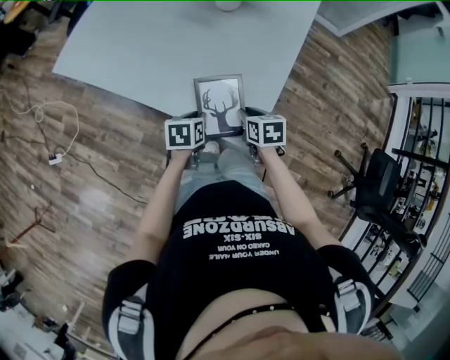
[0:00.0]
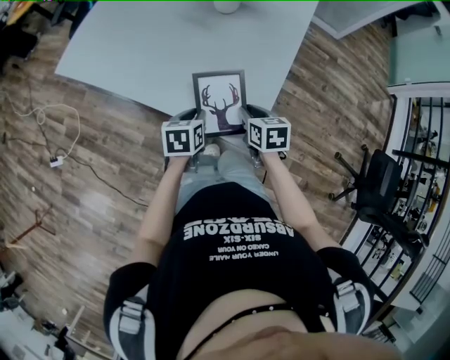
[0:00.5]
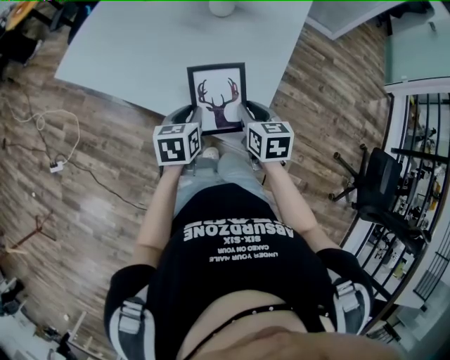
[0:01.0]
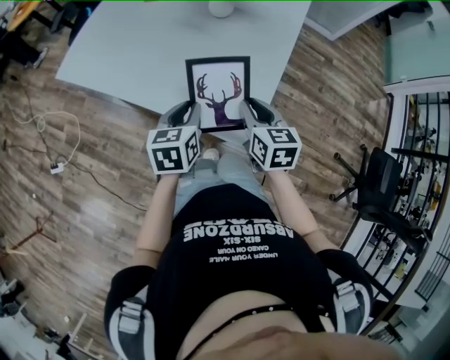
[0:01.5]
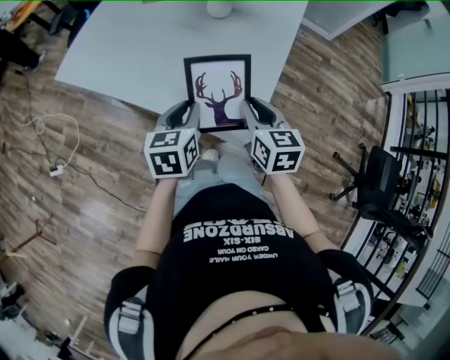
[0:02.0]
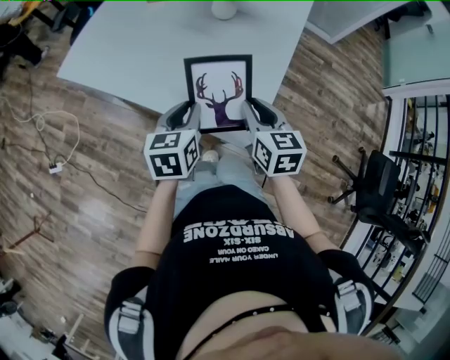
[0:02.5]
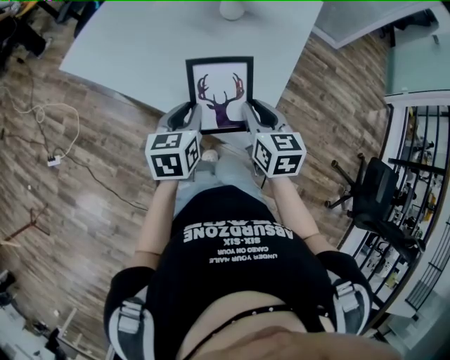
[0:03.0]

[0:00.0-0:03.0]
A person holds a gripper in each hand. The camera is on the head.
0:00.0 to 0:01.5: The grippers both shift upward by about 15 cm. The left gripper turns by some 20 degrees; the right gripper turns by approximately 20 degrees.
0:01.5 to 0:03.0: The grippers make only small movements.

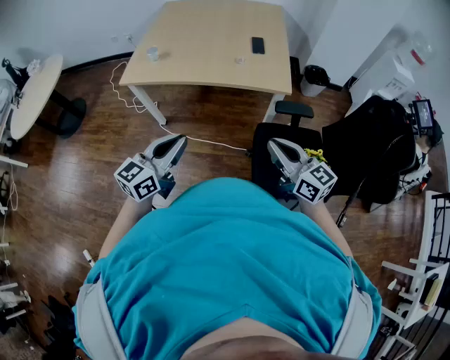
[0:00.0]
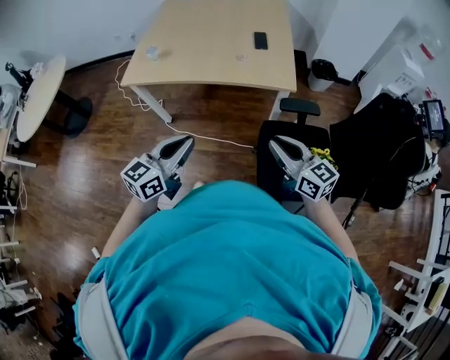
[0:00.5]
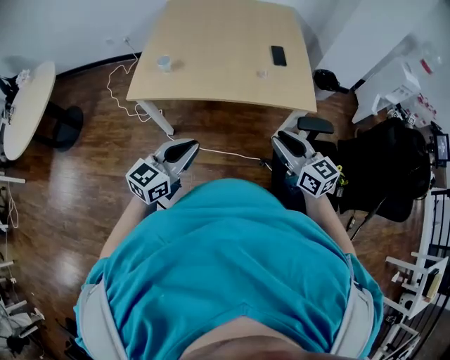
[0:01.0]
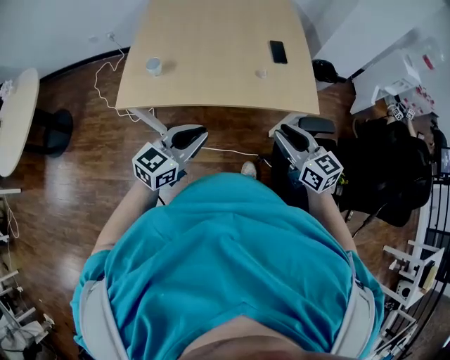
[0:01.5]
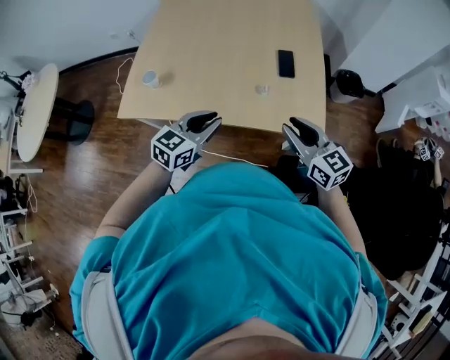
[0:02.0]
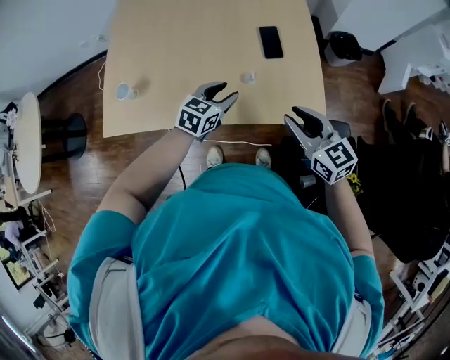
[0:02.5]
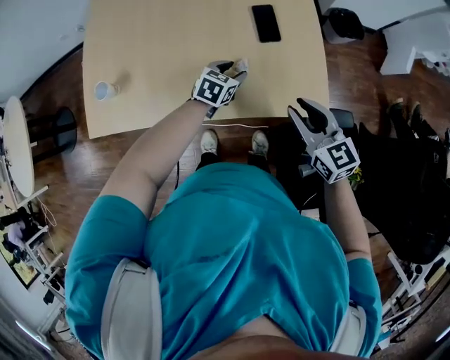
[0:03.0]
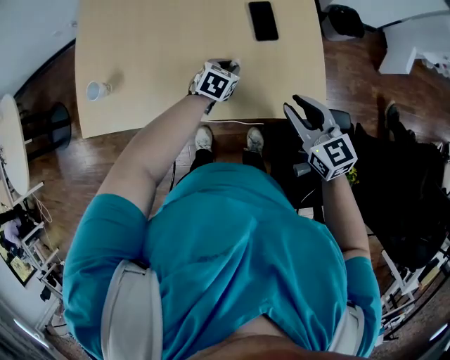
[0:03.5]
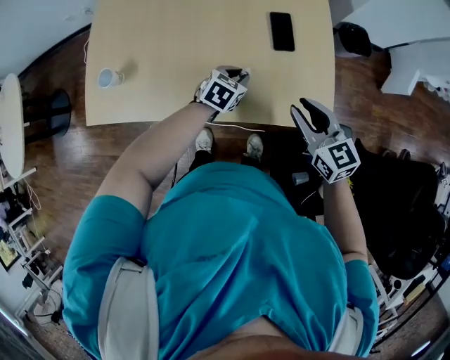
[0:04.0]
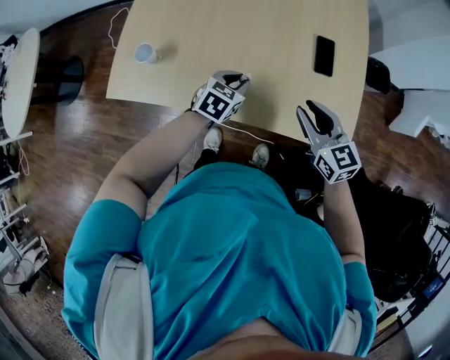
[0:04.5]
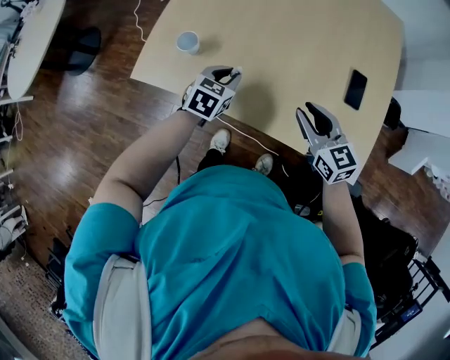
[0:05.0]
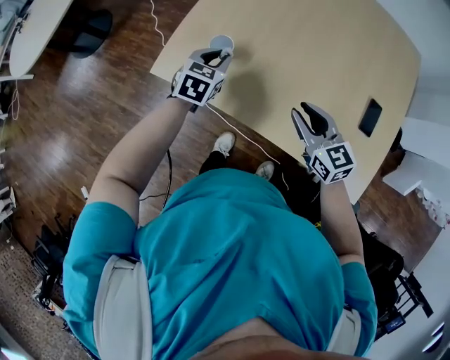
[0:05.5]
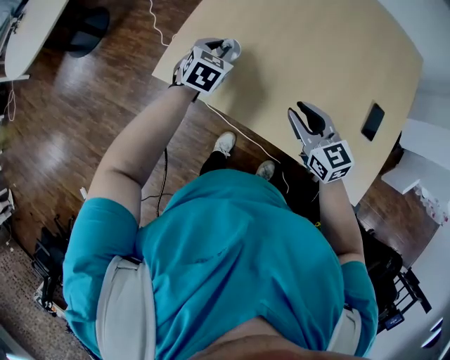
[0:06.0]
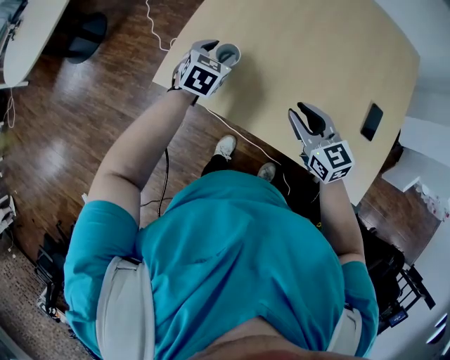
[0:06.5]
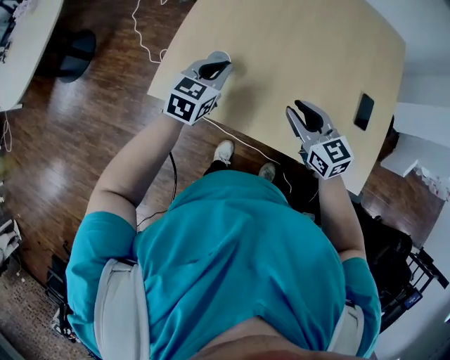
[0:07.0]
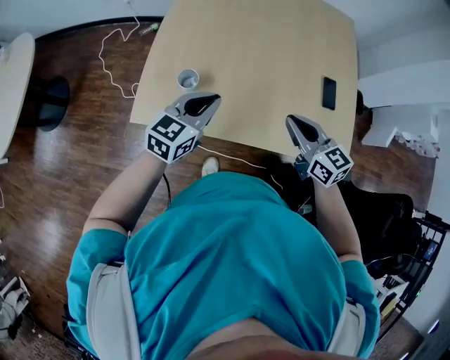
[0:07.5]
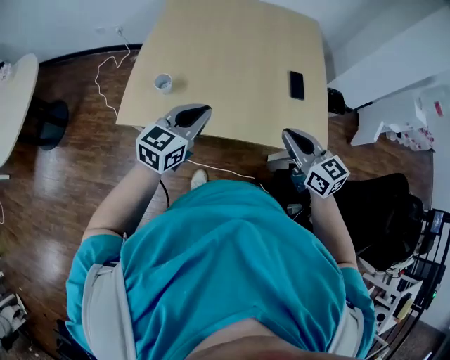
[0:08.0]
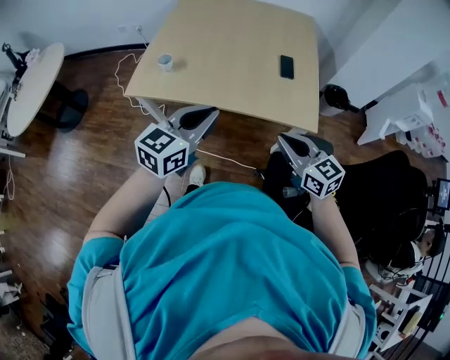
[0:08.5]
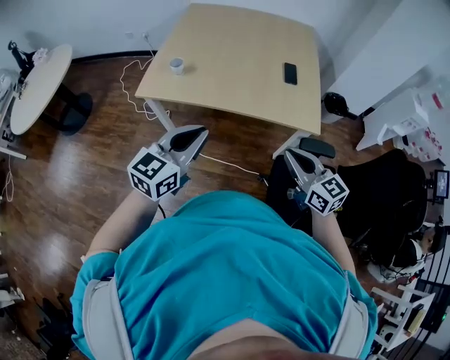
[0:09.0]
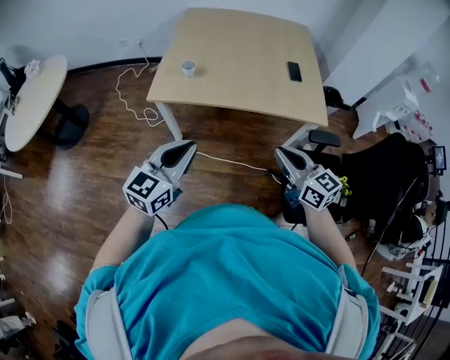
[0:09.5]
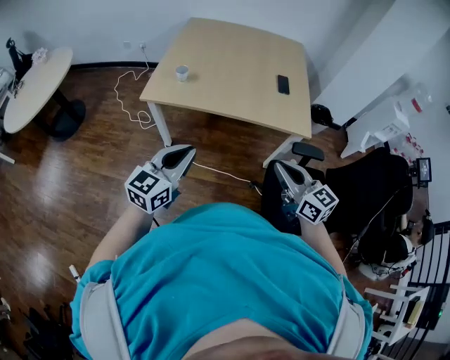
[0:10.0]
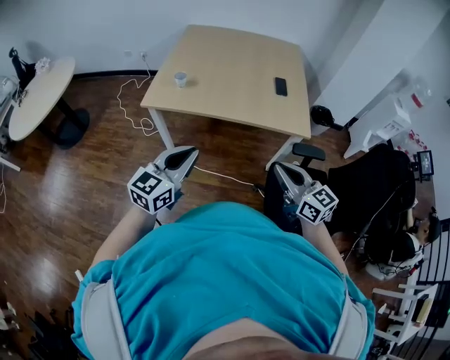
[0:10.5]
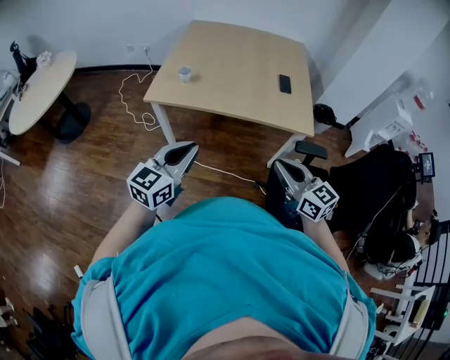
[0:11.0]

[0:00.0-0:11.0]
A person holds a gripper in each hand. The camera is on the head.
0:00.0 to 0:02.0: The grippers both shift forward by about 35 cm. The left gripper swivels about 20 degrees. The right gripper opens.
0:02.0 to 0:03.5: The left gripper travels downward and forward by about 35 cm, tilts its fingers about 30 degrees downward, and opens, then closes again; the right gripper shifts approximately 15 cm downward and forward.
0:03.5 to 0:05.5: The left gripper ends up about 50 cm from where it was, and turns by roughly 40 degrees, while the right gripper ends up approximately 35 cm from where it was, and turns by about 30 degrees.
0:05.5 to 0:07.5: The right gripper moves upward, some 10 cm, and closes; the left gripper shifts roughly 15 cm upward and backward, changes its angle by about 40 degrees, and opens, then closes again.
0:07.5 to 0:09.0: The right gripper travels backward and to the right by roughly 40 cm, while the left gripper moves backward, some 35 cm.
0:09.0 to 0:11.0: Both grippers move backward and to the left, roughly 10 cm.

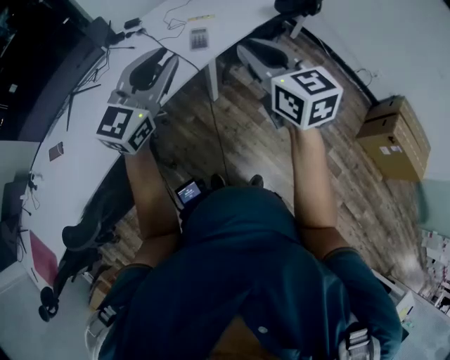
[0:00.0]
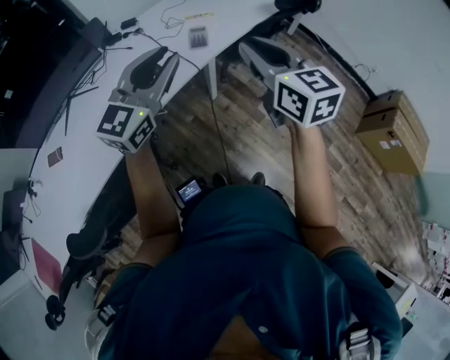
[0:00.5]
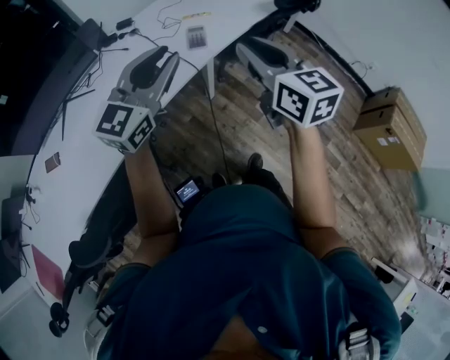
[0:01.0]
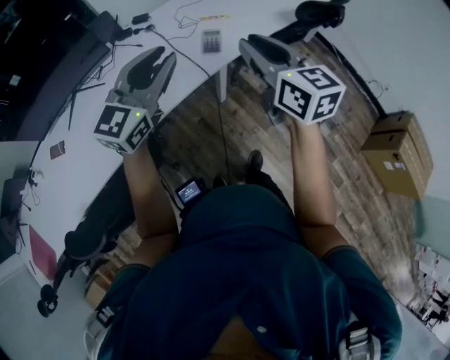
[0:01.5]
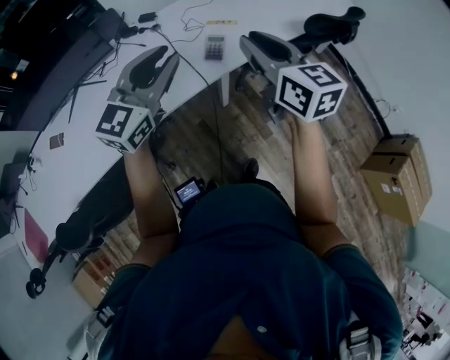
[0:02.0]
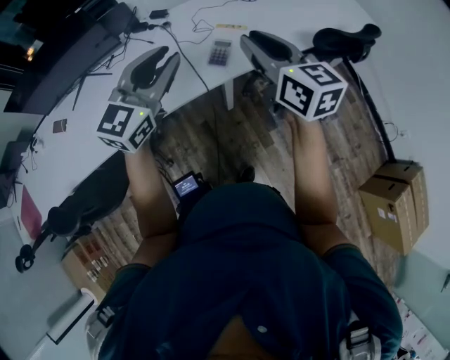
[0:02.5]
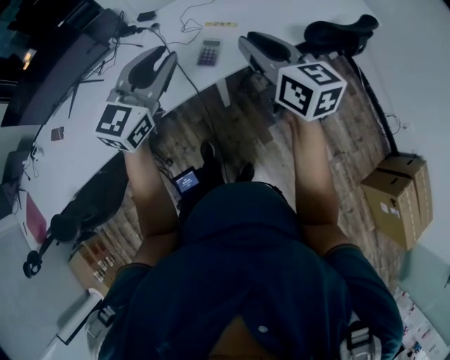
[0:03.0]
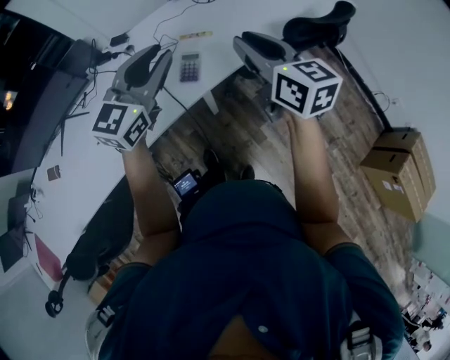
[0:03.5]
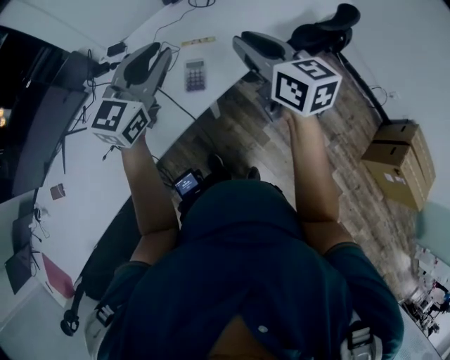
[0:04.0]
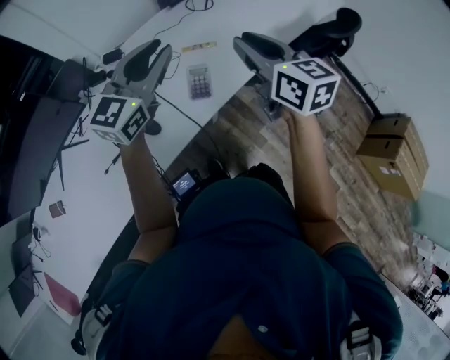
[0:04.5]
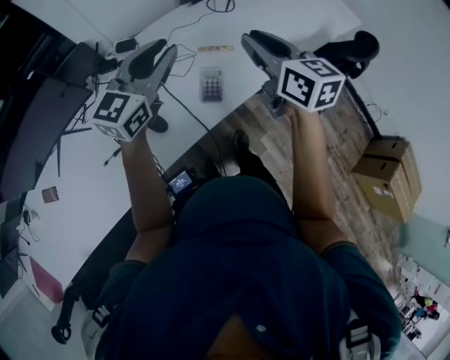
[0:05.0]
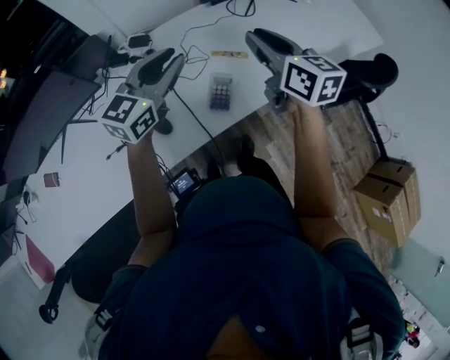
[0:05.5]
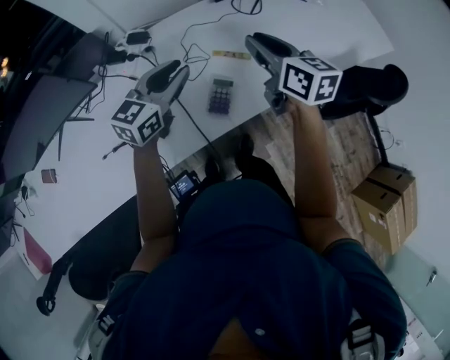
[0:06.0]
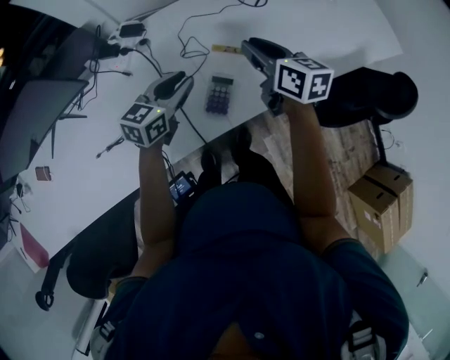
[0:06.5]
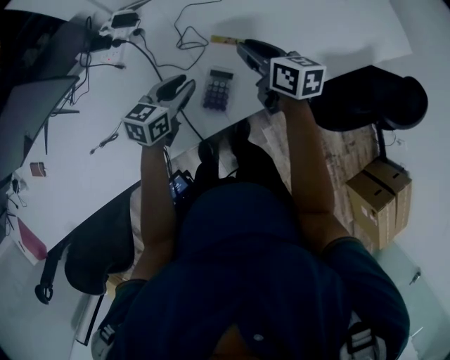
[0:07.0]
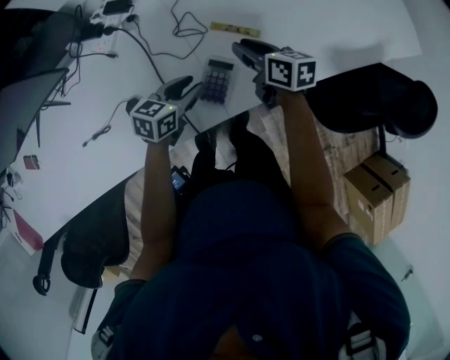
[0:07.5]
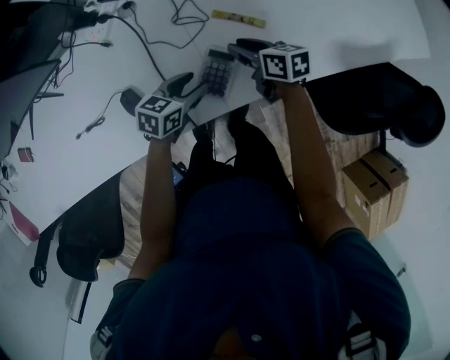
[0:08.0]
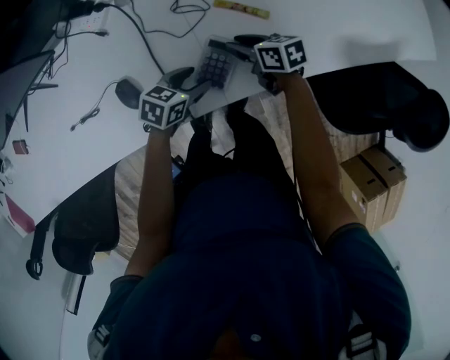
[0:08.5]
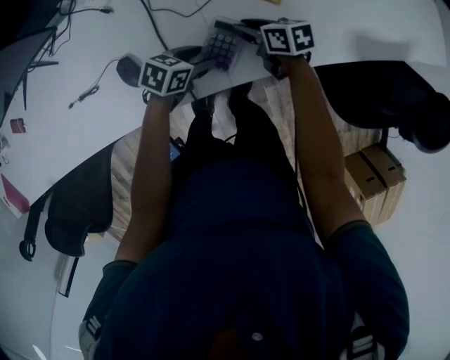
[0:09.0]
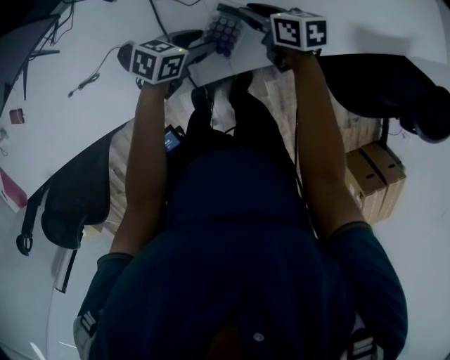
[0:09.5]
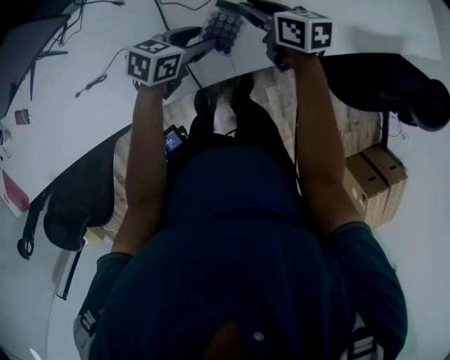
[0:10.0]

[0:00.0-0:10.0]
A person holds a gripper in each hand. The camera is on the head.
0:00.0 to 0:02.0: The grippers both shift forward by some 15 cm.
0:02.0 to 0:04.0: Both grippers travel together forward, approximately 20 cm.
0:04.0 to 0:06.0: The right gripper moves forward and to the left, roughly 20 cm. The left gripper travels downward, forward and to the left by about 20 cm, and turns by about 20 degrees.
0:06.0 to 0:08.0: The grippers both shift downward by about 30 cm. The left gripper turns by approximately 30 degrees, and opens up, while the right gripper turns by approximately 30 degrees.
0:08.0 to 0:10.0: The right gripper goes roughly 5 cm upward.

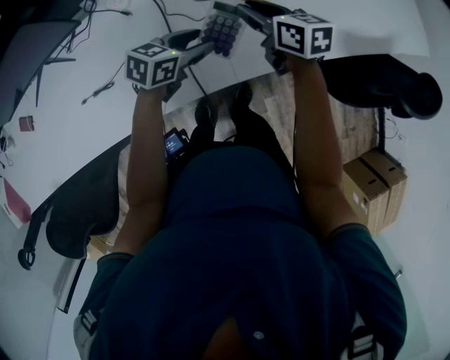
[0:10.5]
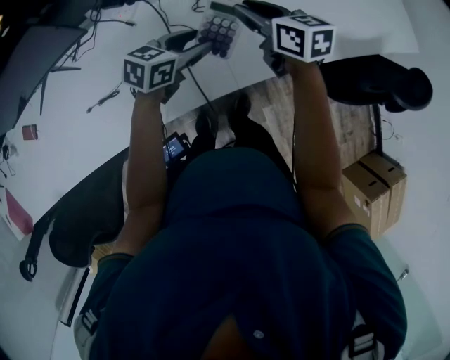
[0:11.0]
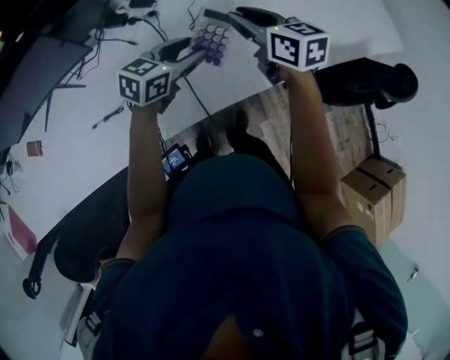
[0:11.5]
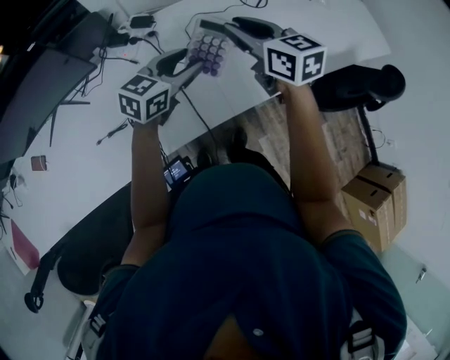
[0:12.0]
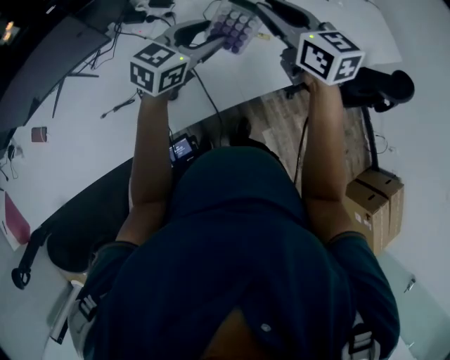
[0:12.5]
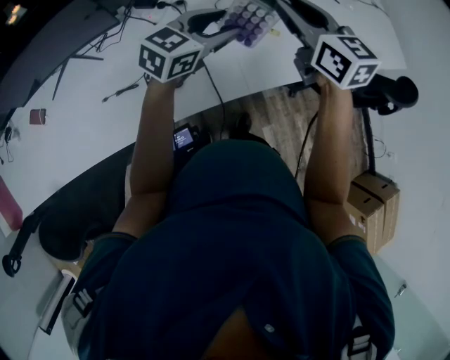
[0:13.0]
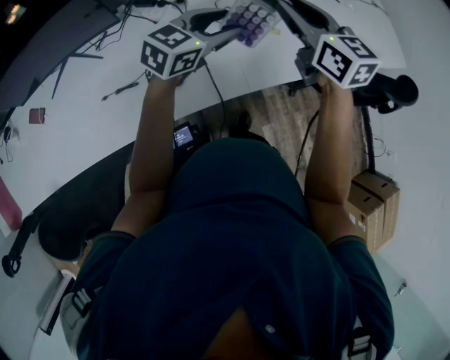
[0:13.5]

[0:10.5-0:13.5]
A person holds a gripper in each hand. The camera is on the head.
0:10.5 to 0:12.0: Both grippers travel together upward, about 15 cm. The right gripper rotates roughly 20 degrees. The left gripper turns by some 20 degrees.
0:12.0 to 0:13.5: The right gripper shifts by some 5 cm.
